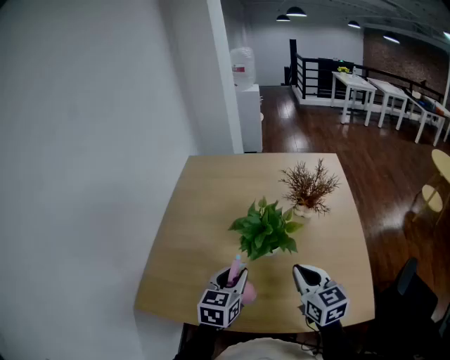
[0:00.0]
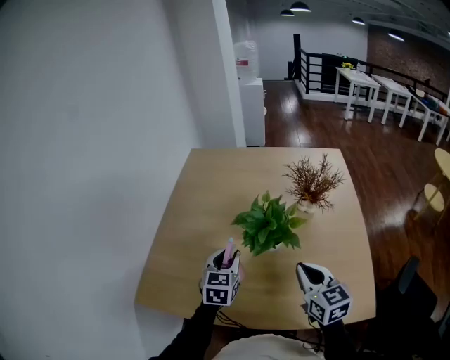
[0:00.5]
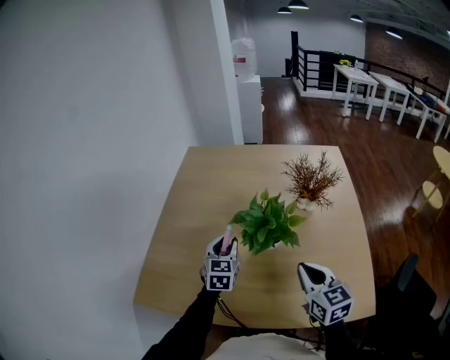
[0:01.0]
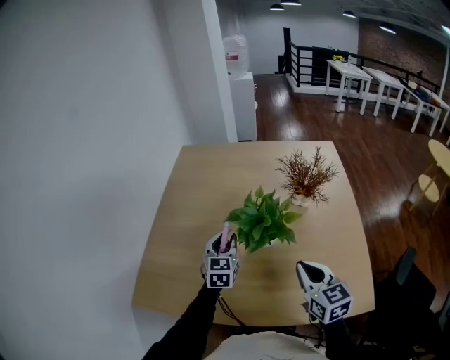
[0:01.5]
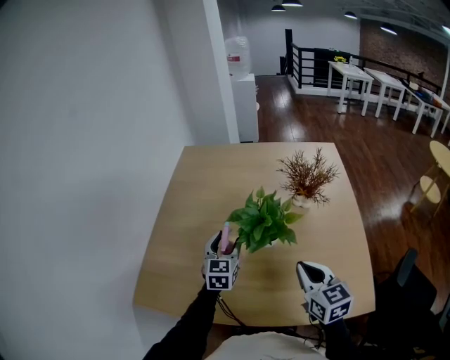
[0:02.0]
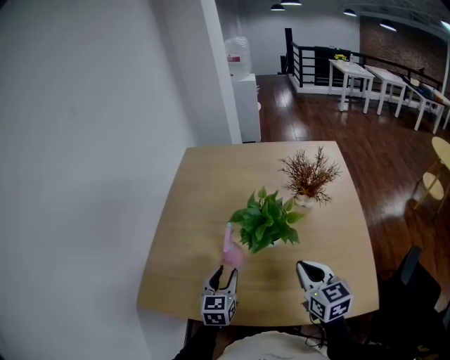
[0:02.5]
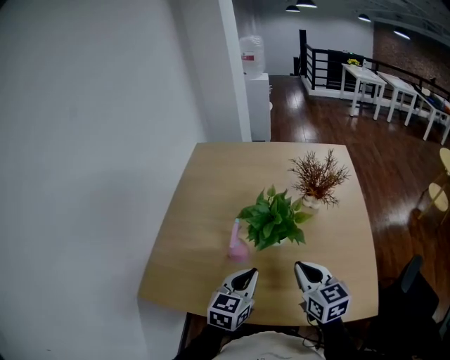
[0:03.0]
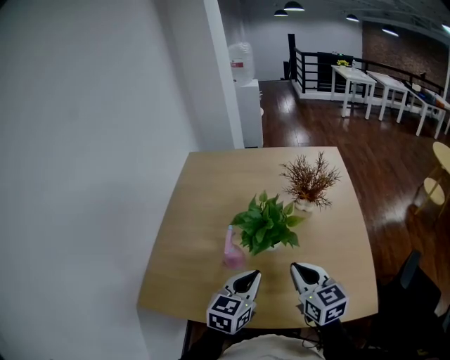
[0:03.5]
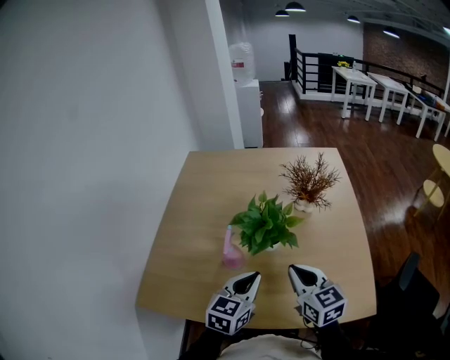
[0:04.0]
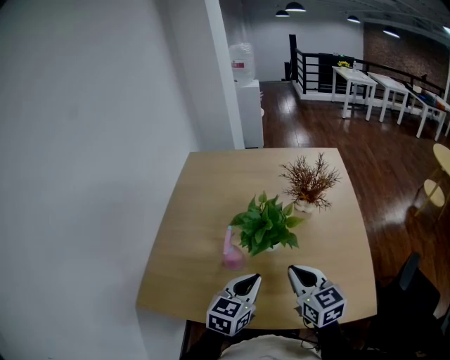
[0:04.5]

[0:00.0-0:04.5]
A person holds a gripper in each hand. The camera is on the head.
0:00.0 to 0:02.0: The left gripper is displaced forward by roughly 10 cm, and opens its fingers.
0:02.0 to 0:04.5: The left gripper is displaced backward and to the right by roughly 15 cm, rotates roughly 20 degrees, and closes up.

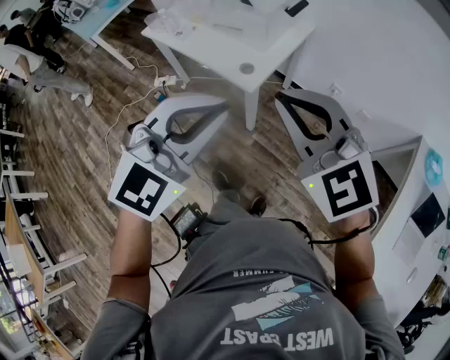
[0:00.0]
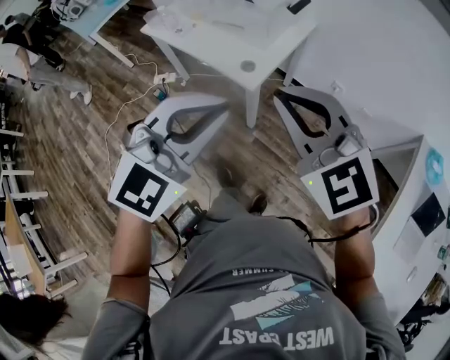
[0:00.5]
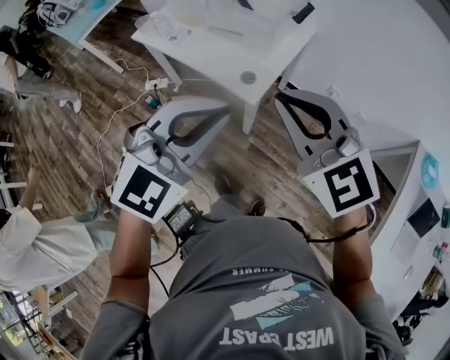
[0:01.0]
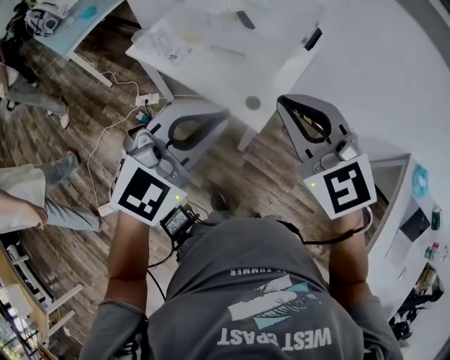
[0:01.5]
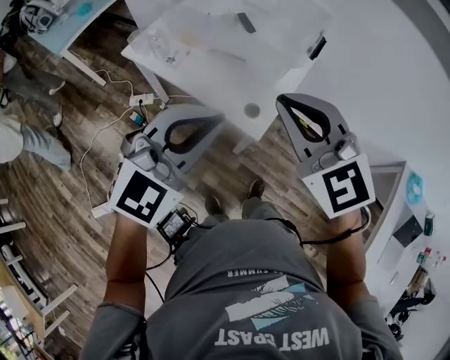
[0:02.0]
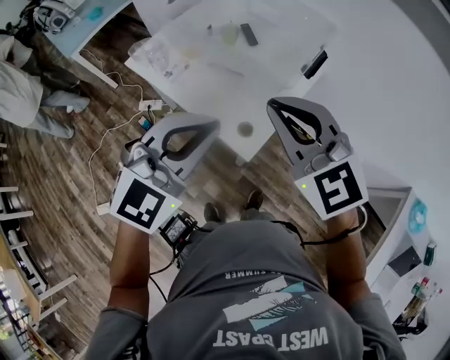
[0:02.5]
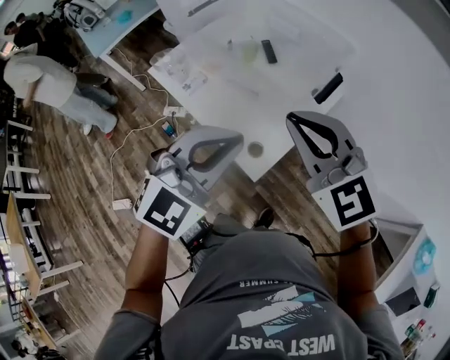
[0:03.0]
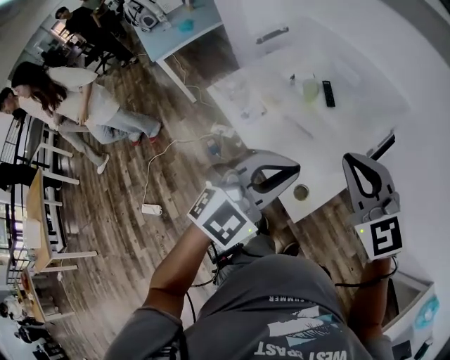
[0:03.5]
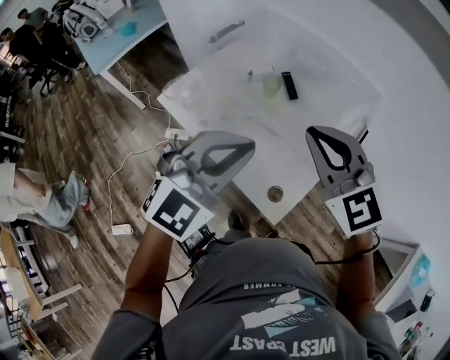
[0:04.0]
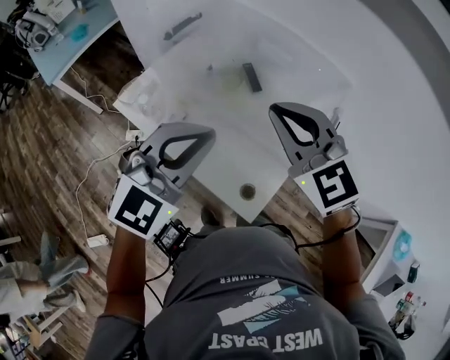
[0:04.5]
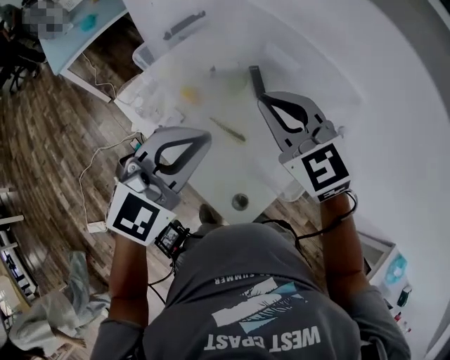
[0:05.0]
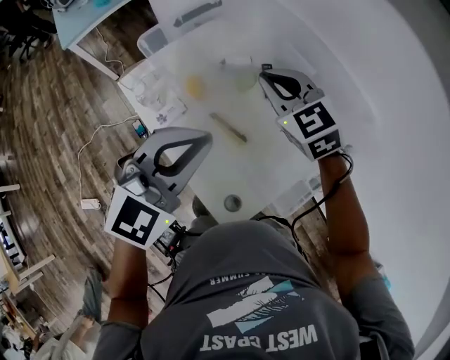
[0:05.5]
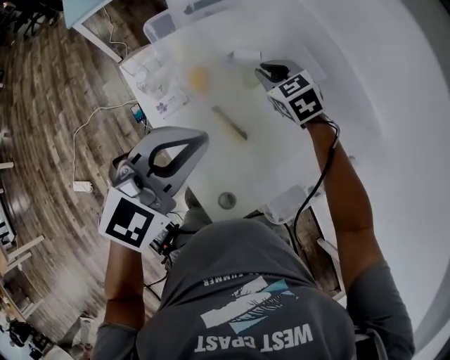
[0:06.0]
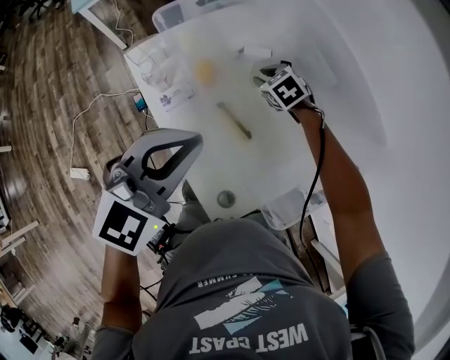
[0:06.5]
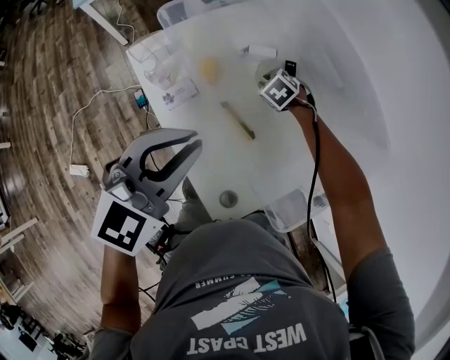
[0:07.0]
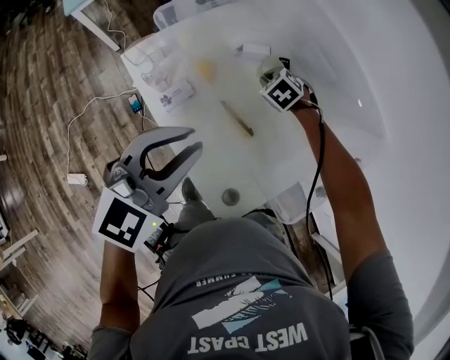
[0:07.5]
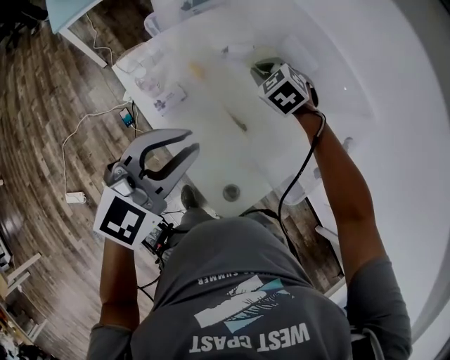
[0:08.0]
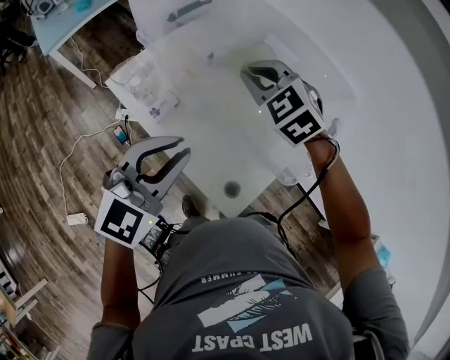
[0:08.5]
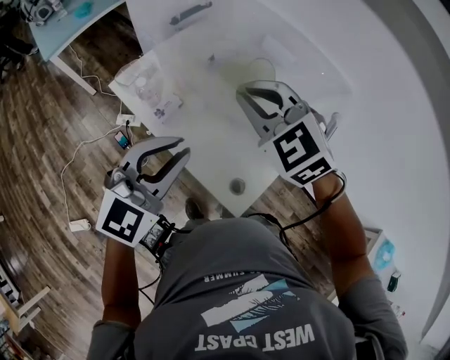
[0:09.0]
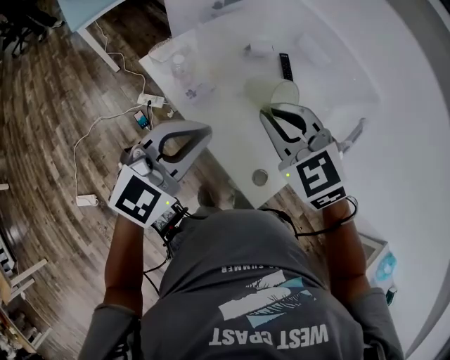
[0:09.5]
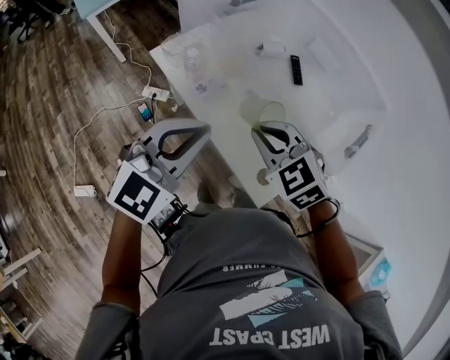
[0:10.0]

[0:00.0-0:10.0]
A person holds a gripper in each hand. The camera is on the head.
0:00.0 to 0:02.0: The grippers both shift forward and to the left by roughly 25 cm.
0:02.0 to 0:04.0: The two grippers go about 20 cm forward.
0:04.0 to 0:06.0: The right gripper shifts about 40 cm forward and downward, and rotates roughly 30 degrees. The left gripper shifts roughly 15 cm forward and downward, and changes its angle by approximately 20 degrees.
0:06.0 to 0:08.0: The right gripper reaches approximately 15 cm downward, then returns. The left gripper moves roughly 5 cm.
0:08.0 to 0:10.0: The right gripper moves backward, approximately 25 cm. The left gripper moves to the left and backward, roughly 10 cm.

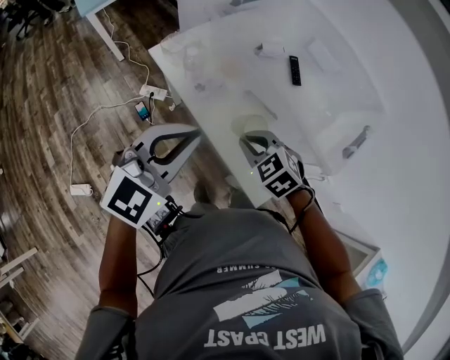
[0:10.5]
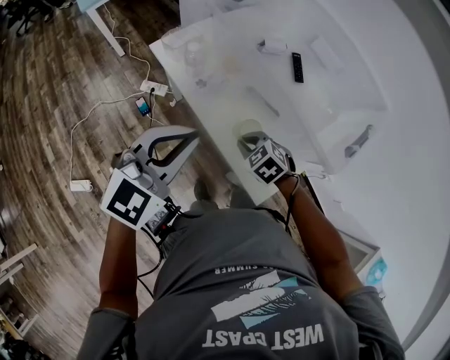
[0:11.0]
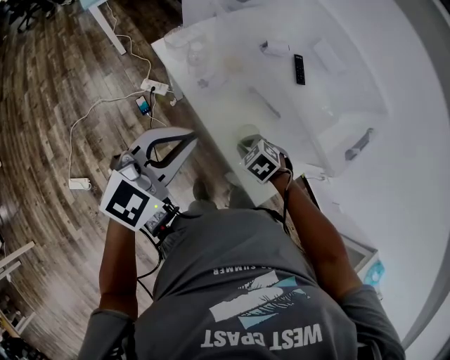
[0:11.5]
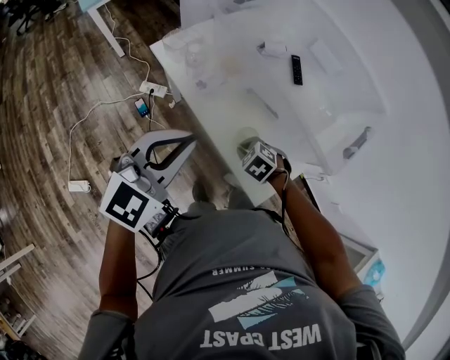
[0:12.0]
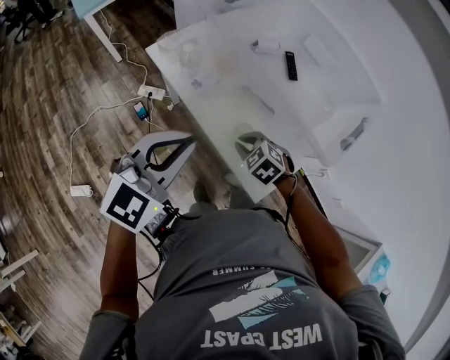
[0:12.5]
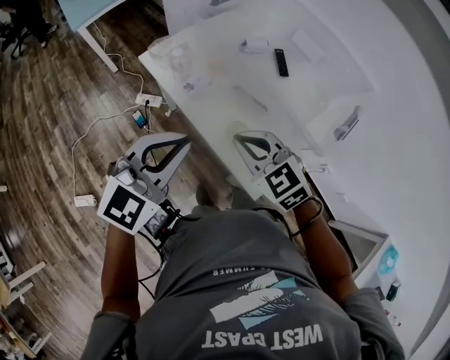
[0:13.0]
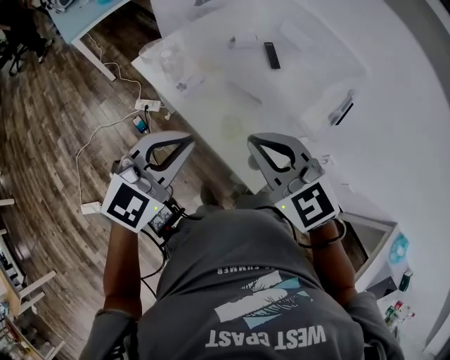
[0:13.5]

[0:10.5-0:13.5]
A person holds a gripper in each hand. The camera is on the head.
0:10.5 to 0:12.0: The right gripper heads downward, covering approximately 15 cm, and changes its angle by about 20 degrees.
0:12.0 to 0:13.5: The right gripper is displaced upward by approximately 30 cm, and angles its fingers upward, by about 50 degrees. The left gripper moves to the right, about 5 cm.

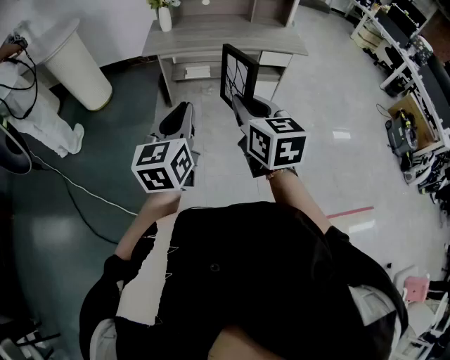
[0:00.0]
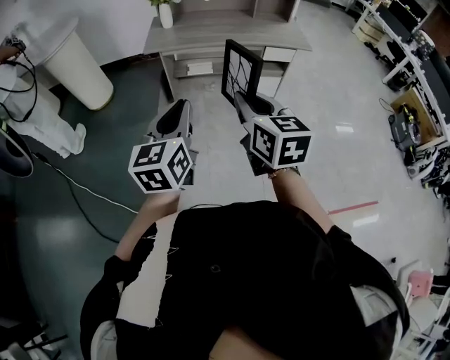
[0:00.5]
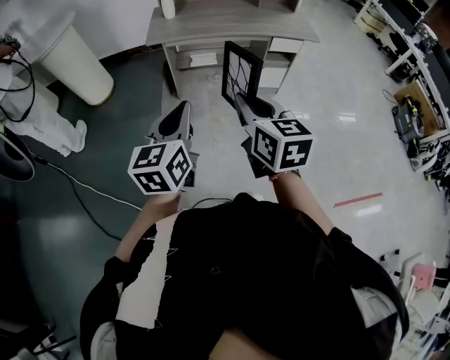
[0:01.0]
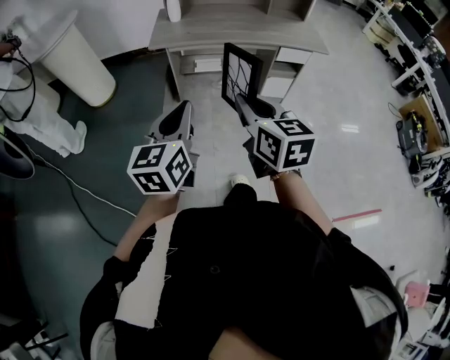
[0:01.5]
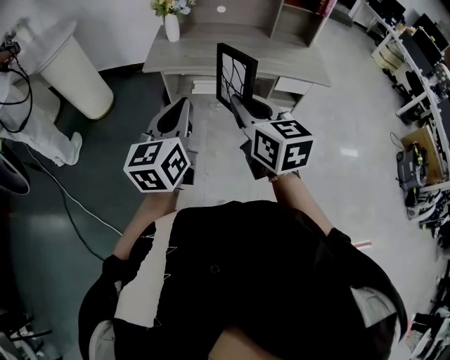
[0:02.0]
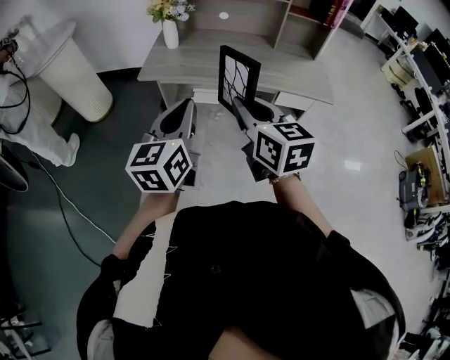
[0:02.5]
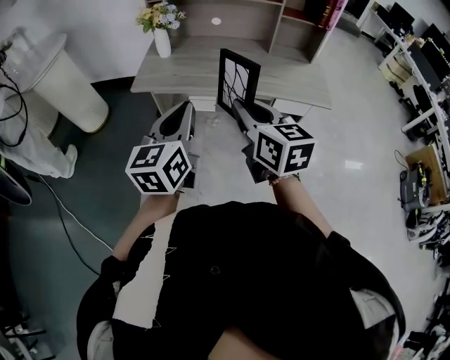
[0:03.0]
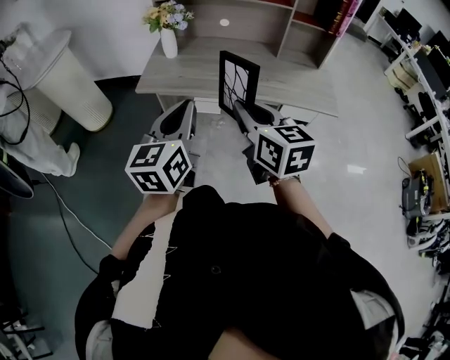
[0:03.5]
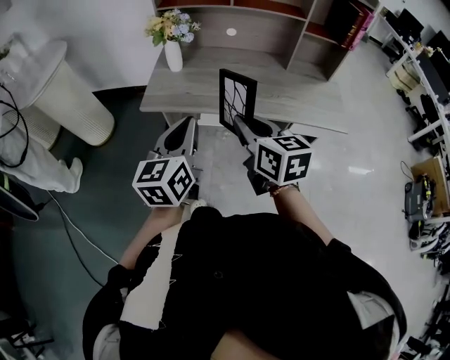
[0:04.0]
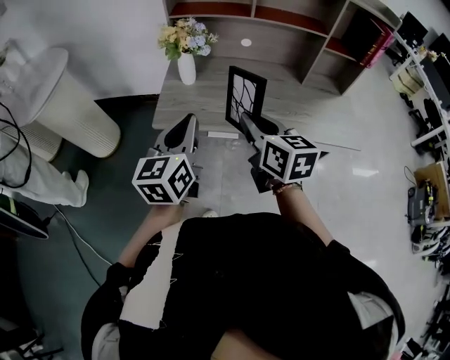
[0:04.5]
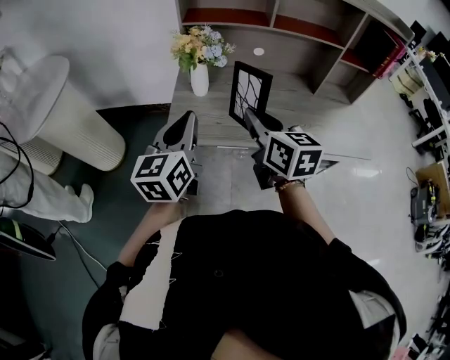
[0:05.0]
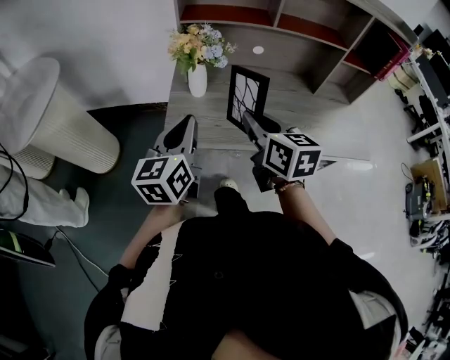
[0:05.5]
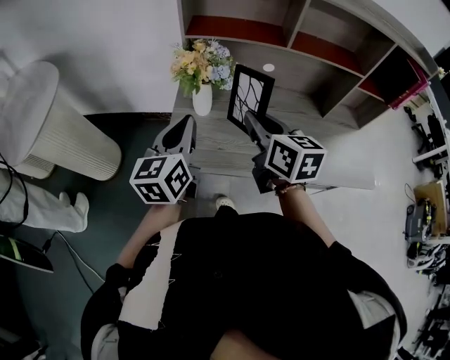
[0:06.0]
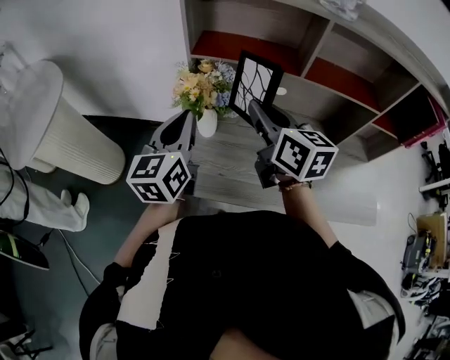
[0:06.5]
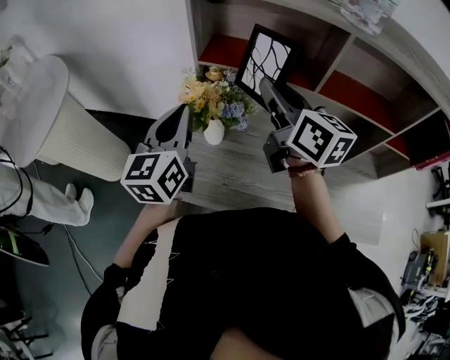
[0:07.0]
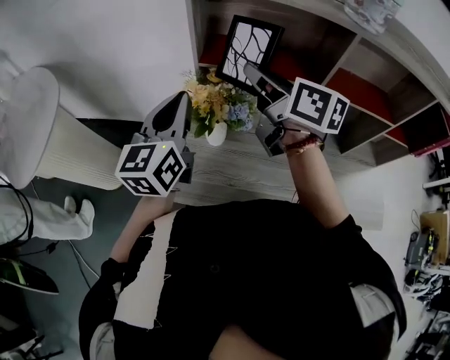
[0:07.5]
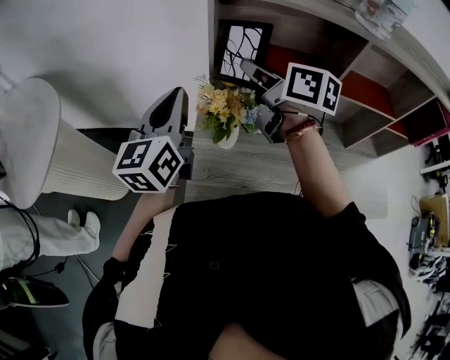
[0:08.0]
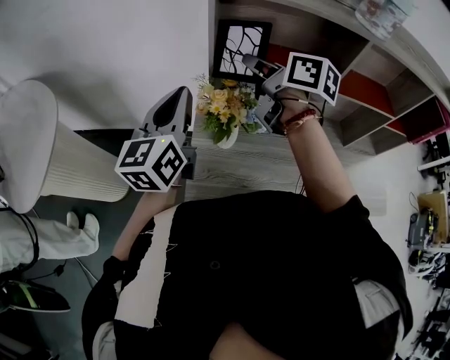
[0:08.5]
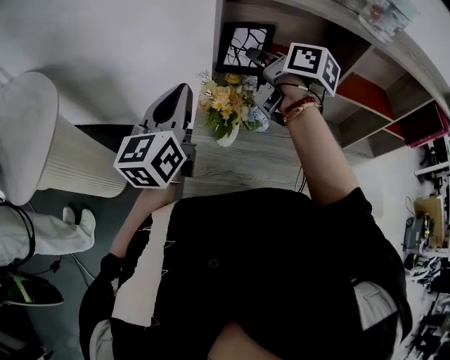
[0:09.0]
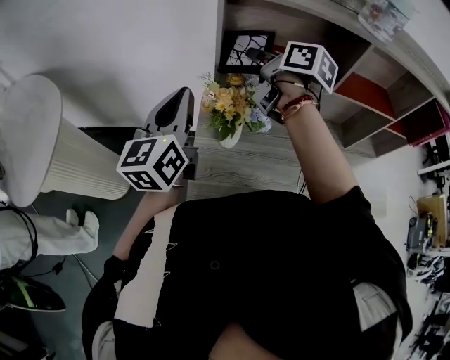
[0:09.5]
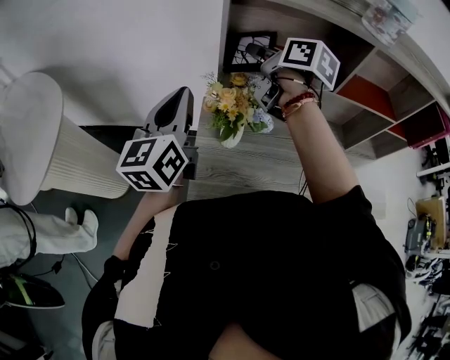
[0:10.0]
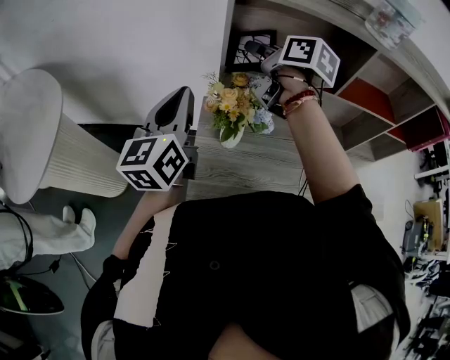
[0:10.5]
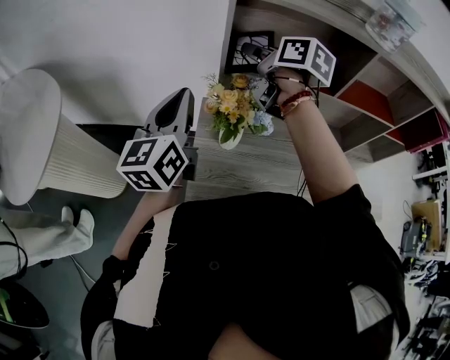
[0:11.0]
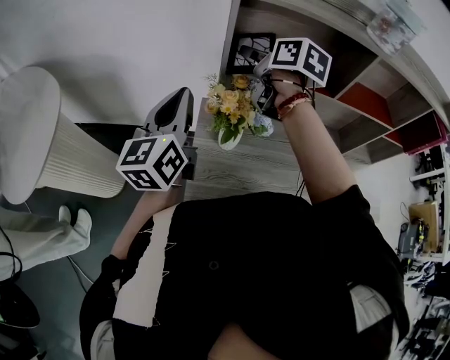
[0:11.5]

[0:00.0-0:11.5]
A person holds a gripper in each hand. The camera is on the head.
0:00.0 to 0:02.0: Both grippers move forward, roughly 20 cm.
0:02.0 to 0:04.0: The two grippers go about 20 cm forward.
0:04.0 to 0:06.0: The left gripper moves forward and to the left, approximately 30 cm. Meanwhile the right gripper travels forward by approximately 25 cm.
0:06.0 to 0:07.5: Both grippers move forward and upward, some 20 cm. The right gripper swivels roughly 20 degrees.
0:07.5 to 0:09.5: The left gripper shifts by about 5 cm. Meanwhile the right gripper moves forward, approximately 10 cm, and swivels approximately 20 degrees.
0:09.5 to 0:11.5: The right gripper opens its fingers.
